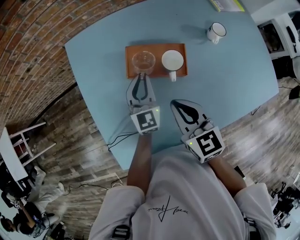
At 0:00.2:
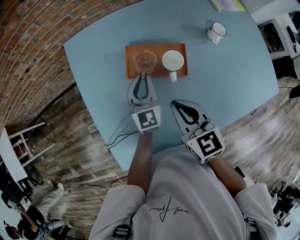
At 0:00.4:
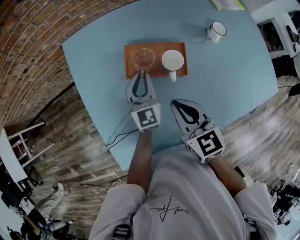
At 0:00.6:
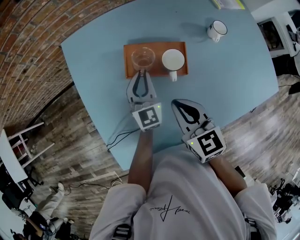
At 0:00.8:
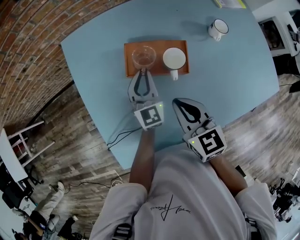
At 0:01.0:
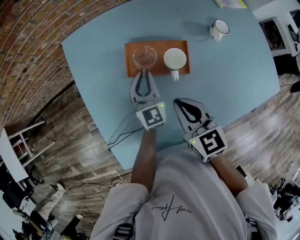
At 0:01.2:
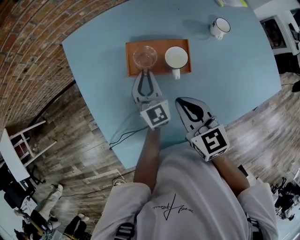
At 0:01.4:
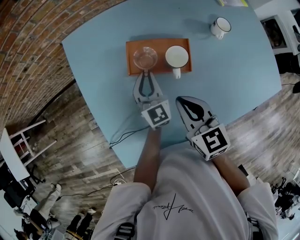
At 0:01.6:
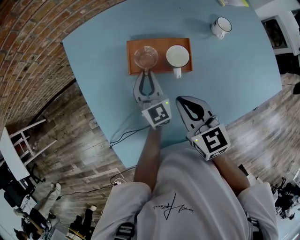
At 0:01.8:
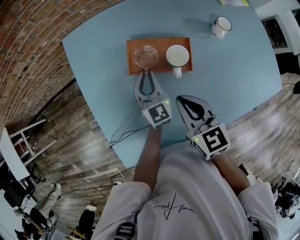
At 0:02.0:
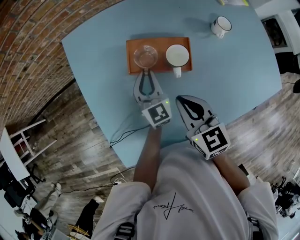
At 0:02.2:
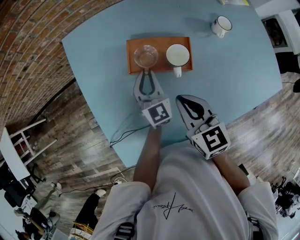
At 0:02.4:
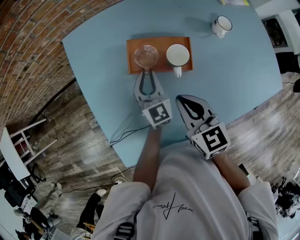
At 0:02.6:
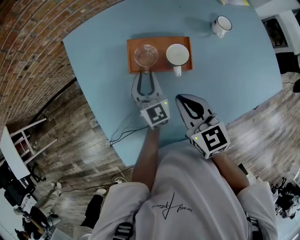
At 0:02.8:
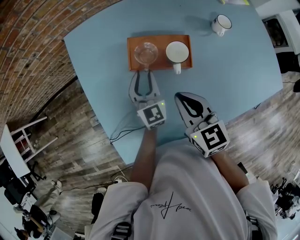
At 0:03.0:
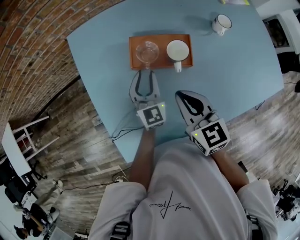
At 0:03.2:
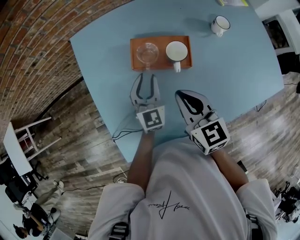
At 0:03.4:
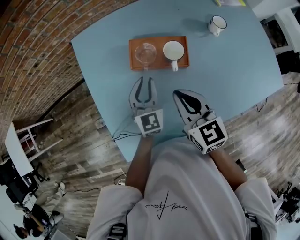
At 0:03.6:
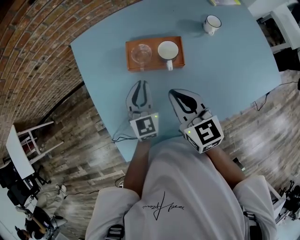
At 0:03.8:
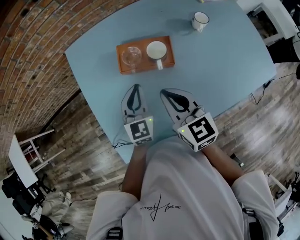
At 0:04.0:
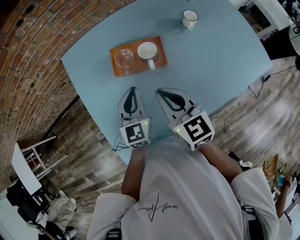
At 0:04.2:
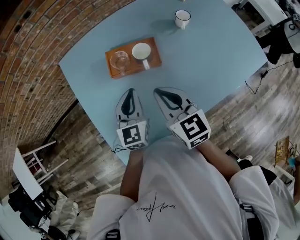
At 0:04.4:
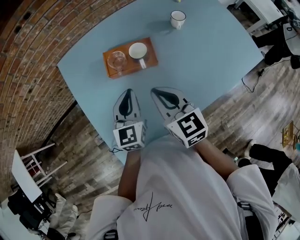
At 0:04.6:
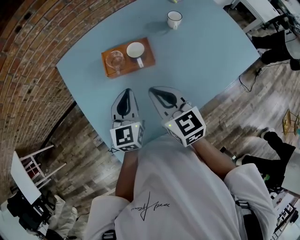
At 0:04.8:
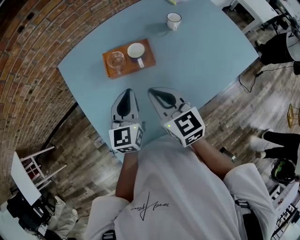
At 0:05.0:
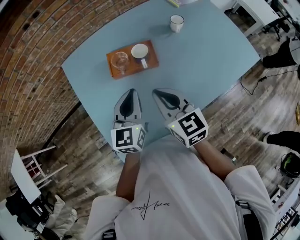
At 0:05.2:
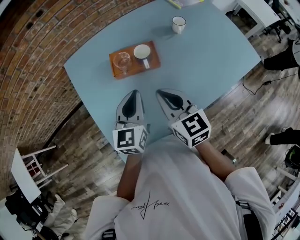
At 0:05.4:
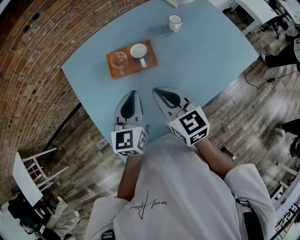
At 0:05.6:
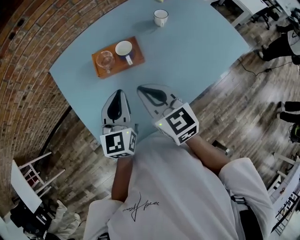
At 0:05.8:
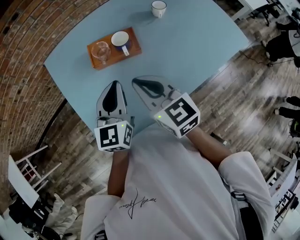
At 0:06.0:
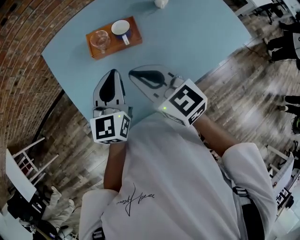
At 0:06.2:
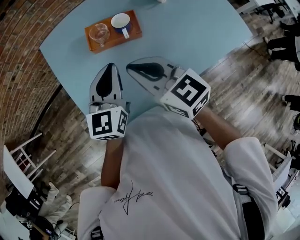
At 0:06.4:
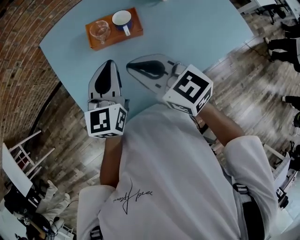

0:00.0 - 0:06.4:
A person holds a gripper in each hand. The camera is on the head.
0:00.0 - 0:03.2: The grippers move only a little.
0:03.2 - 0:04.8: The left gripper heads upward and backward, covering approximately 15 cm, swivels some 20 degrees, and closes up, while the right gripper moves about 5 cm.
0:04.8 - 0:06.4: The right gripper changes place by about 5 cm, and swivels roughly 20 degrees.

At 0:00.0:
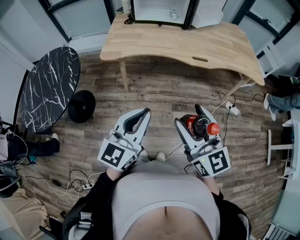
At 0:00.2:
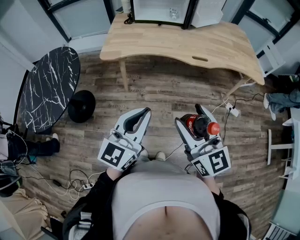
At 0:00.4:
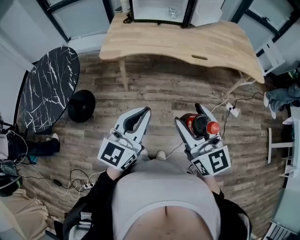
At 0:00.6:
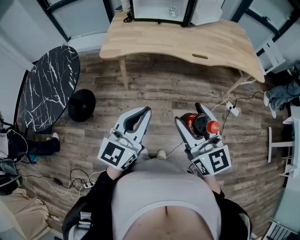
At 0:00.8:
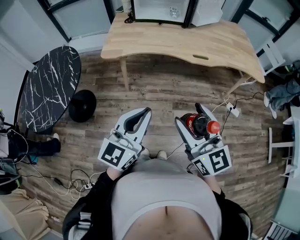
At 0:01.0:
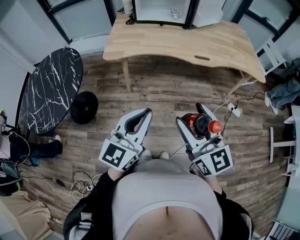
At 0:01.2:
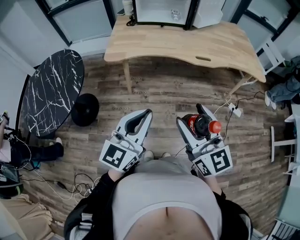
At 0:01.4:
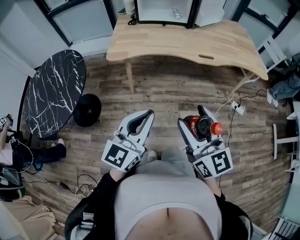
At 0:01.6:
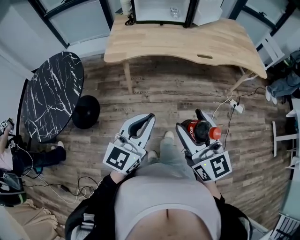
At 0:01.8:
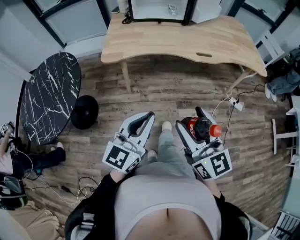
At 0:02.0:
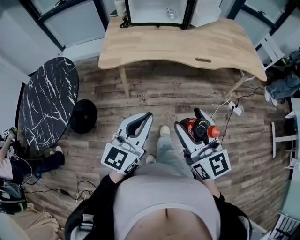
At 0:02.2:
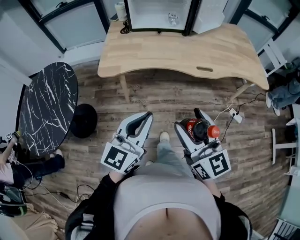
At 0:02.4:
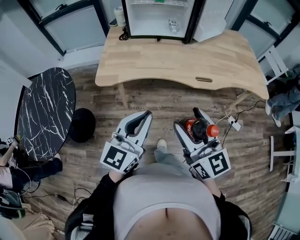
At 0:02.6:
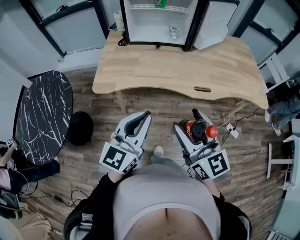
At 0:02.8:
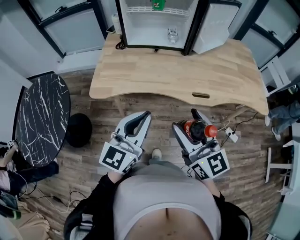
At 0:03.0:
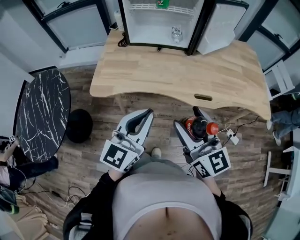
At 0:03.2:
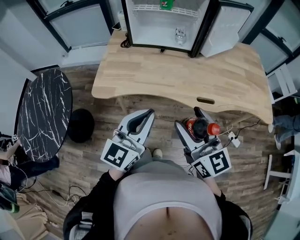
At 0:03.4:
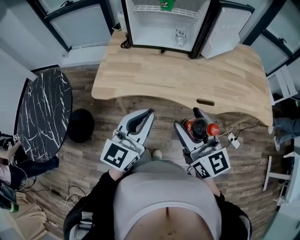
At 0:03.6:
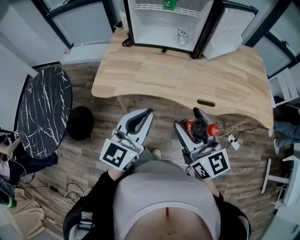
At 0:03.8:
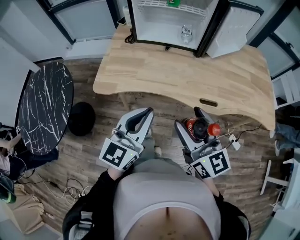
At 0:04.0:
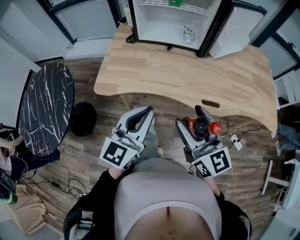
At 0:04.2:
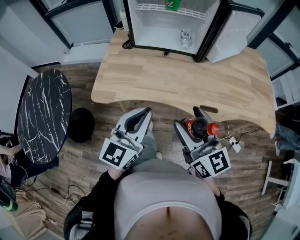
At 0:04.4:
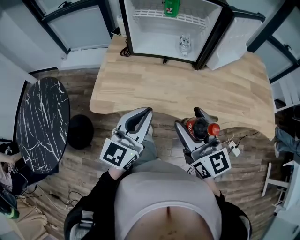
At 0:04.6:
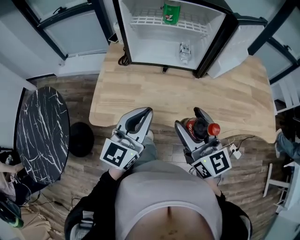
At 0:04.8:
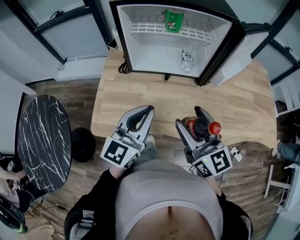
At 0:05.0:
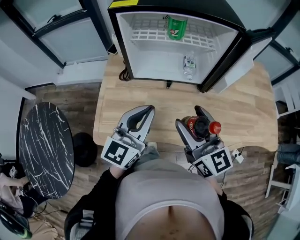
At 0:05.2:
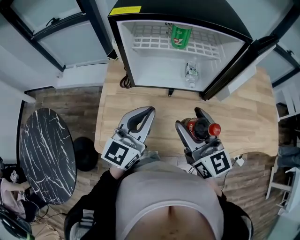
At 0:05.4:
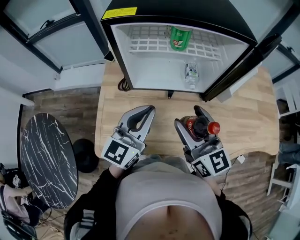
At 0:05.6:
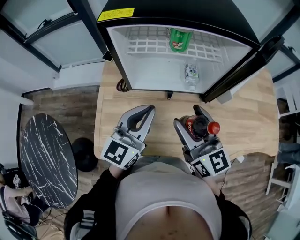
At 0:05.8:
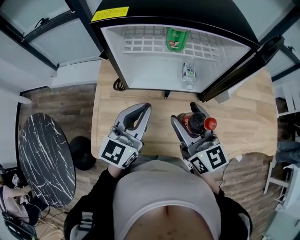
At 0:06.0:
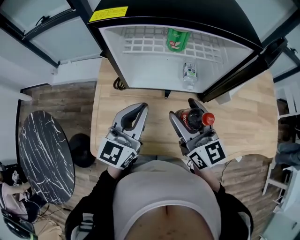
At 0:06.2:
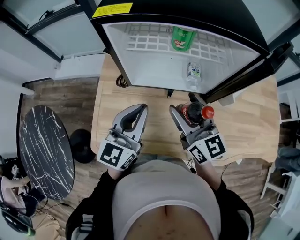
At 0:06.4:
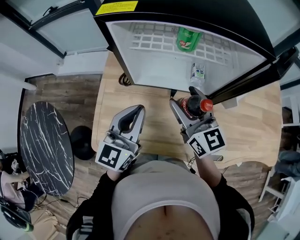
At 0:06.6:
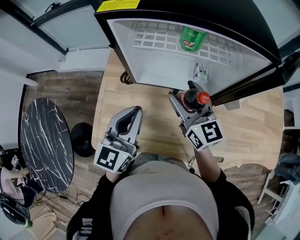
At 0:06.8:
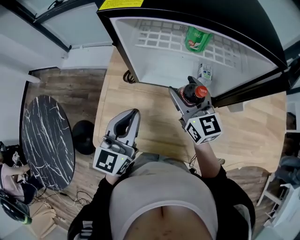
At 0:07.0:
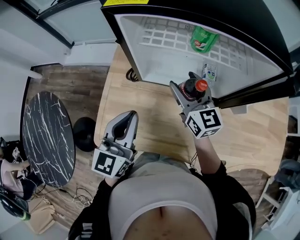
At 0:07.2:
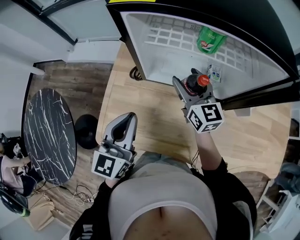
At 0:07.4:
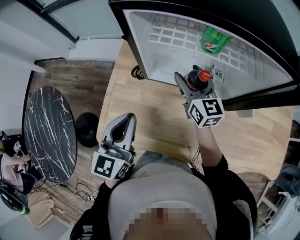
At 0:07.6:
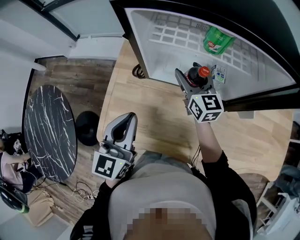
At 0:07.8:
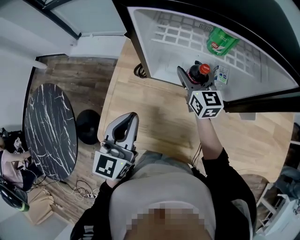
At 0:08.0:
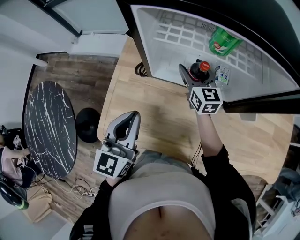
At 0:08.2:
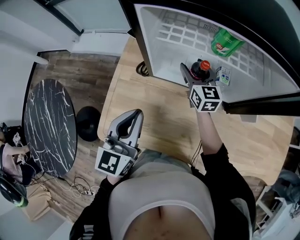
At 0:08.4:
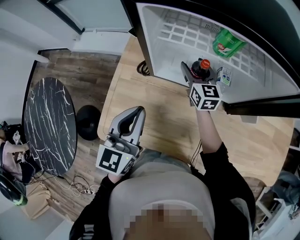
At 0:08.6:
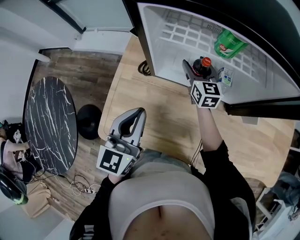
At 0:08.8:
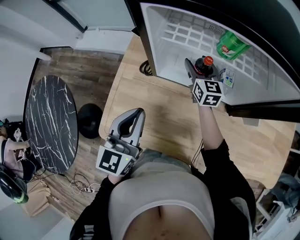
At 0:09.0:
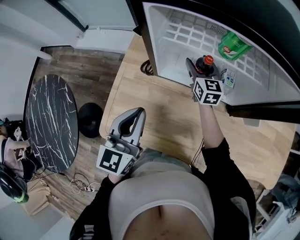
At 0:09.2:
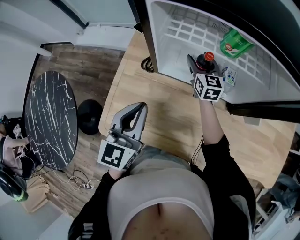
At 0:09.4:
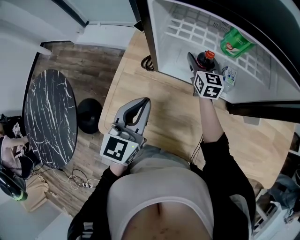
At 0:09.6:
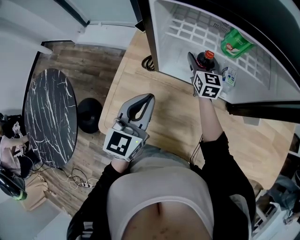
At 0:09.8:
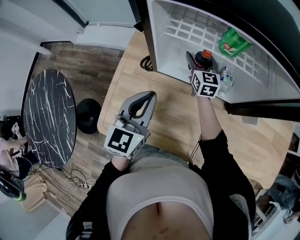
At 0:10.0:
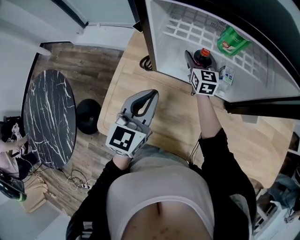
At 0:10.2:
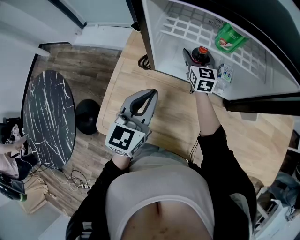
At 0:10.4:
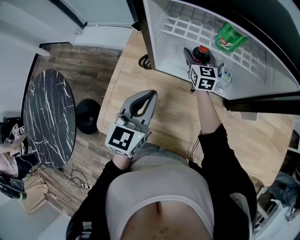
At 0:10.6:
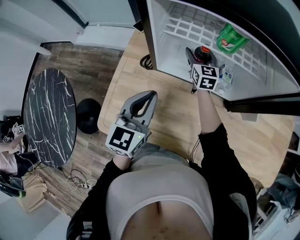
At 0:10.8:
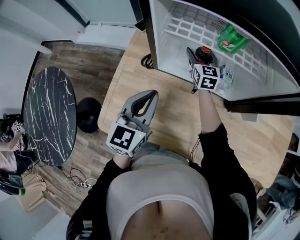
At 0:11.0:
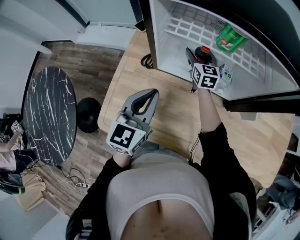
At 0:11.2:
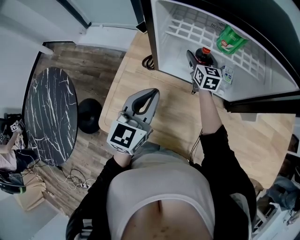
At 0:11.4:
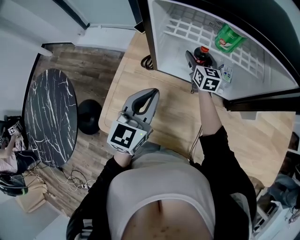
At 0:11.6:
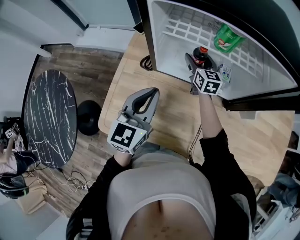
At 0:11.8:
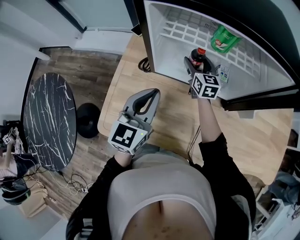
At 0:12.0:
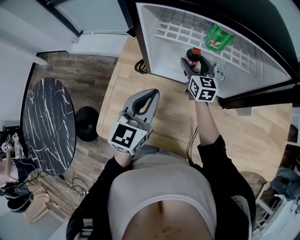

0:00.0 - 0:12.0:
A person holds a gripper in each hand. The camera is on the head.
0:00.0 - 0:01.6: The left gripper ends up about 5 cm from where it was; the right gripper travels to the left by about 5 cm.
0:01.6 - 0:03.0: The two grippers go roughly 30 cm forward.
0:03.0 - 0:04.4: Both grippers travel together forward, about 10 cm.
0:04.4 - 0:06.0: Both grippers travel together forward, some 25 cm.
0:06.0 - 0:07.6: The right gripper travels forward and downward by some 20 cm; the left gripper travels to the left by approximately 10 cm, and swivels roughly 20 degrees.
0:07.6 - 0:09.0: The right gripper is displaced forward and downward by about 10 cm.
0:09.0 - 0:10.4: The left gripper ends up some 5 cm from where it was.
0:10.4 - 0:12.0: The right gripper changes place by some 5 cm.

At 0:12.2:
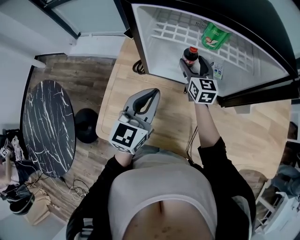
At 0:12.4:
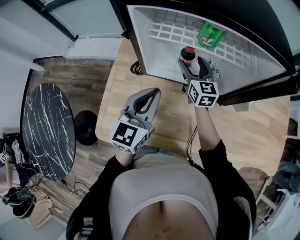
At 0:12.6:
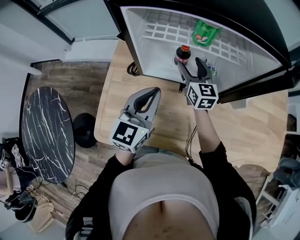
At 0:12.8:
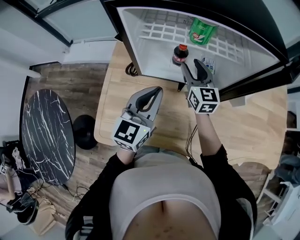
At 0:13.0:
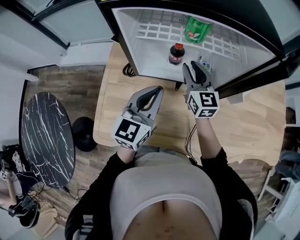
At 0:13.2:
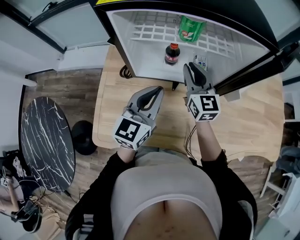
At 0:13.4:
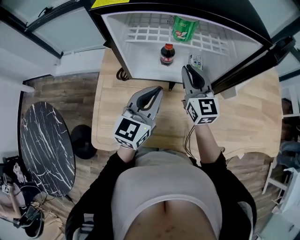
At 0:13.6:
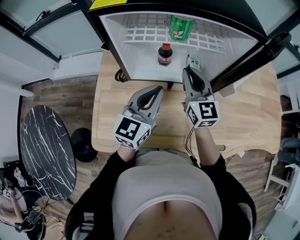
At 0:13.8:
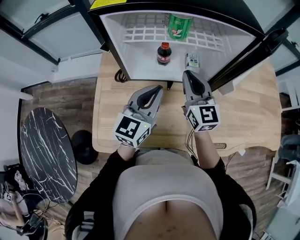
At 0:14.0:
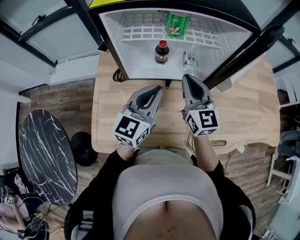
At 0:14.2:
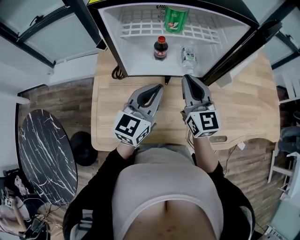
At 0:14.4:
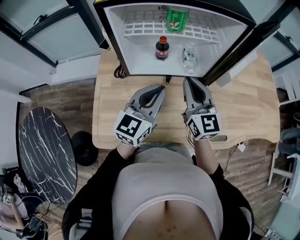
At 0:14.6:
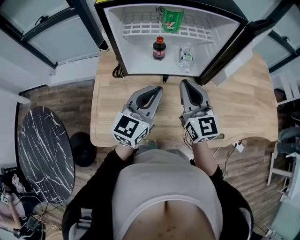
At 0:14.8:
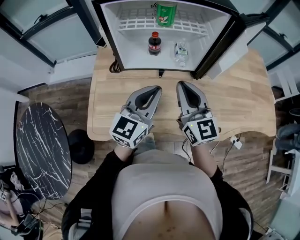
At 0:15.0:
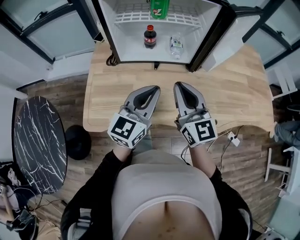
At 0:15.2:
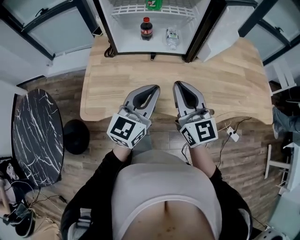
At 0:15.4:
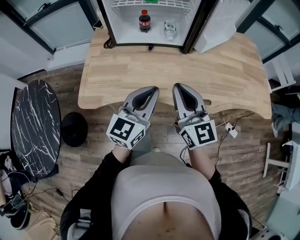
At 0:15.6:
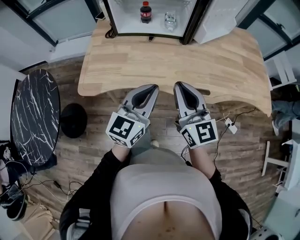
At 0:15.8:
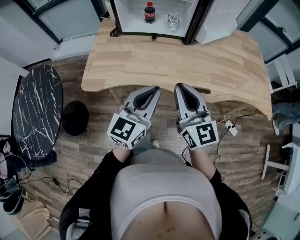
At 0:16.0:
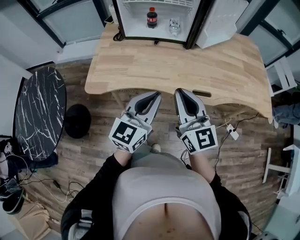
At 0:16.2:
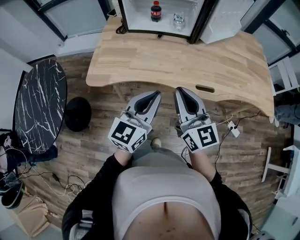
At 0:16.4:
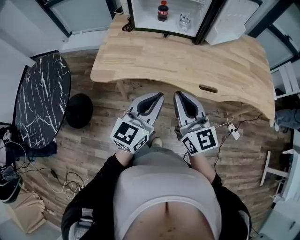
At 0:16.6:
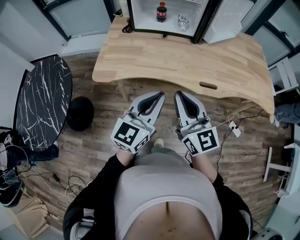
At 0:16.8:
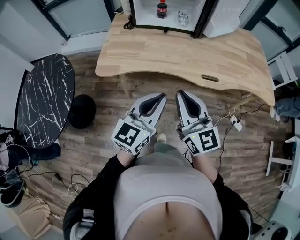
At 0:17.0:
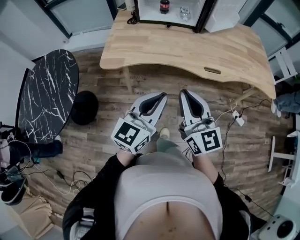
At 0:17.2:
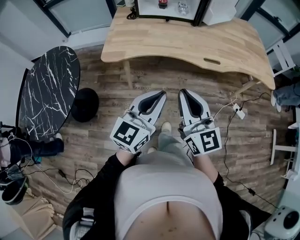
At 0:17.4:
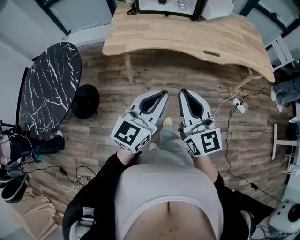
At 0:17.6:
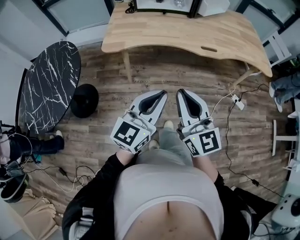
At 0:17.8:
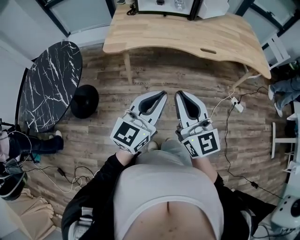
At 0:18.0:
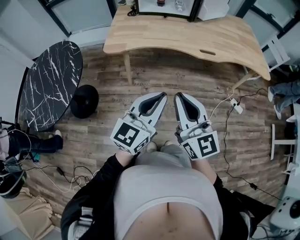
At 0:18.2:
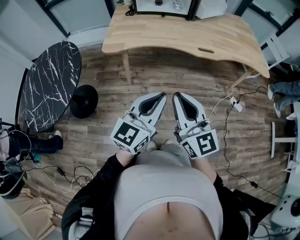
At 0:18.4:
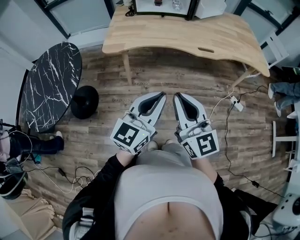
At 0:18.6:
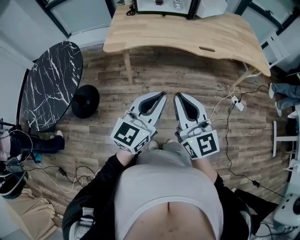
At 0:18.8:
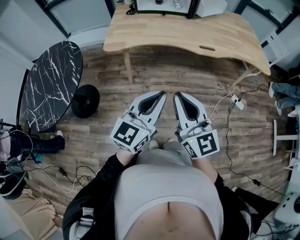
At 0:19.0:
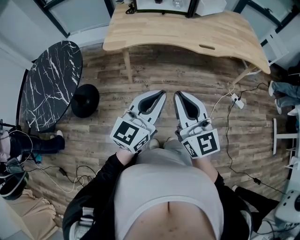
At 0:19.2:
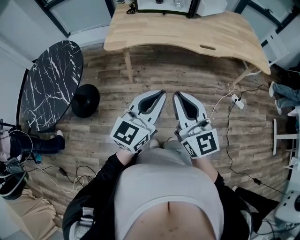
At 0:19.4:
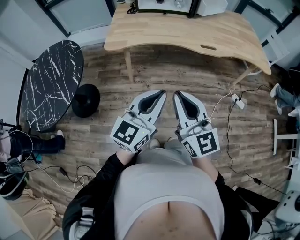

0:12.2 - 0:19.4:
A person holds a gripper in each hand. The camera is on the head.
0:12.2 - 0:13.6: The left gripper moves to the right, some 5 cm. The right gripper heads backward, upward and to the right, covering about 15 cm, and closes.
0:13.6 - 0:15.0: The left gripper heads backward and to the right, covering approximately 15 cm, while the right gripper goes some 20 cm backward.
0:15.0 - 0:16.6: The grippers both shift backward by about 25 cm.
0:16.6 - 0:18.0: The grippers both shift backward by about 25 cm.
0:18.0 - 0:19.4: The grippers stay close to where they were, moving slightly.
